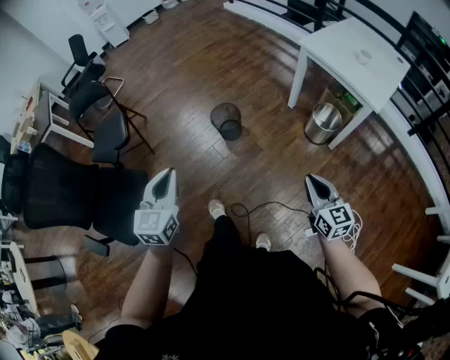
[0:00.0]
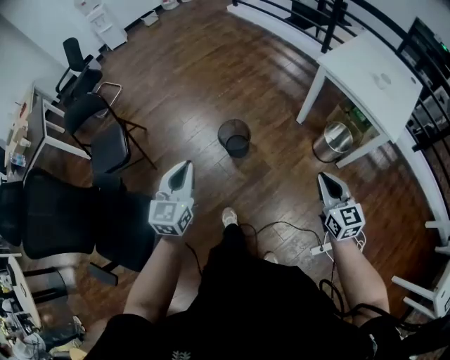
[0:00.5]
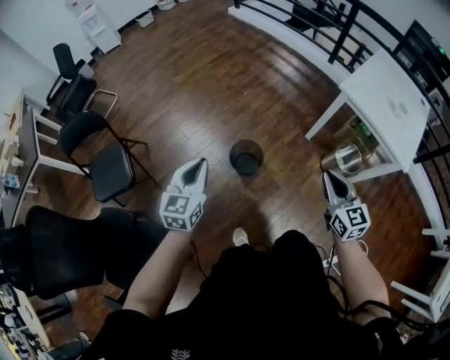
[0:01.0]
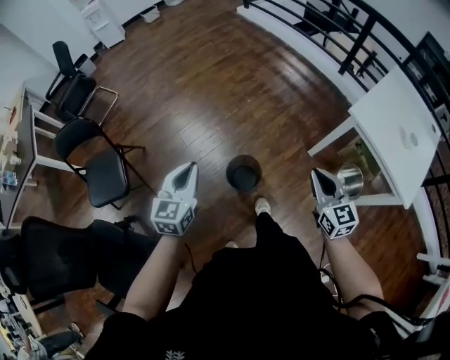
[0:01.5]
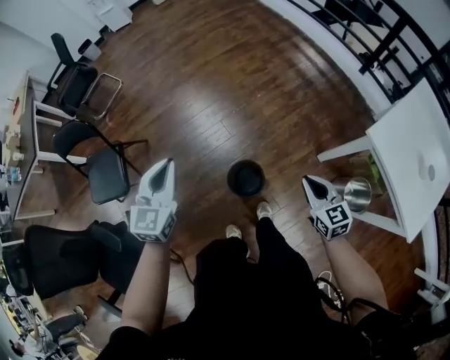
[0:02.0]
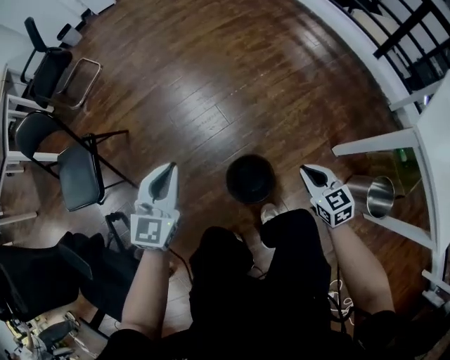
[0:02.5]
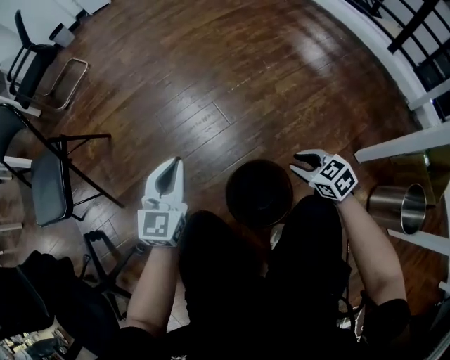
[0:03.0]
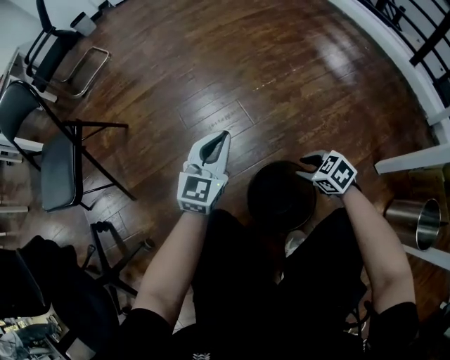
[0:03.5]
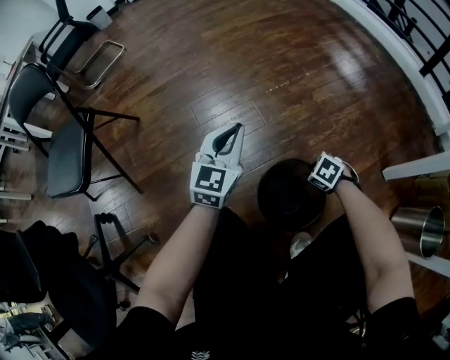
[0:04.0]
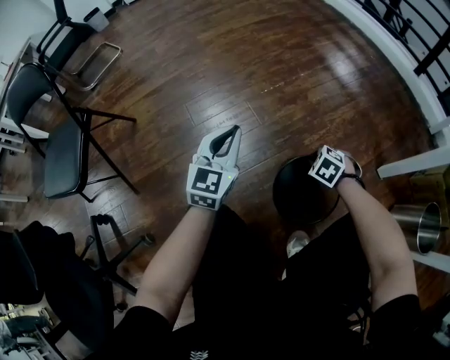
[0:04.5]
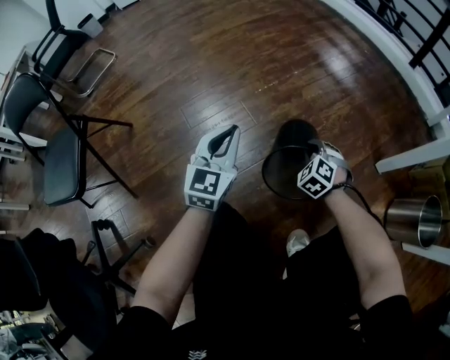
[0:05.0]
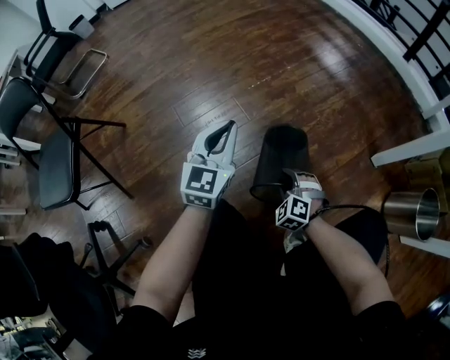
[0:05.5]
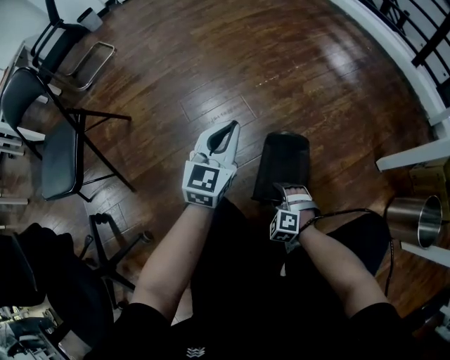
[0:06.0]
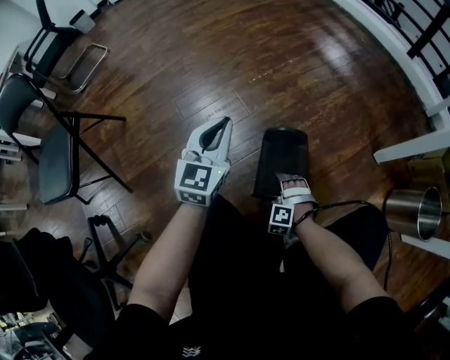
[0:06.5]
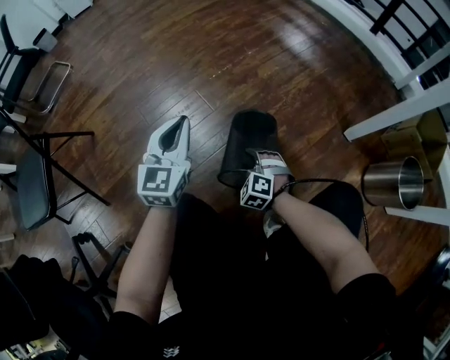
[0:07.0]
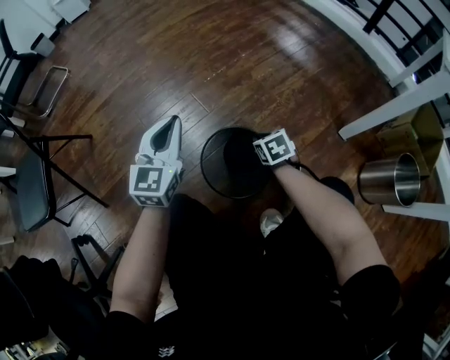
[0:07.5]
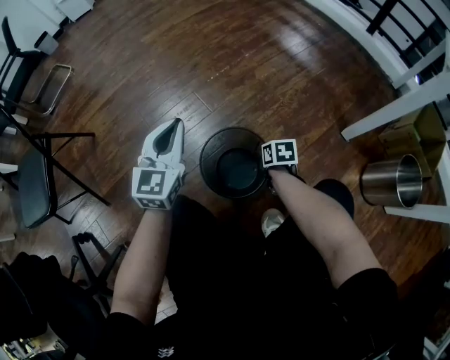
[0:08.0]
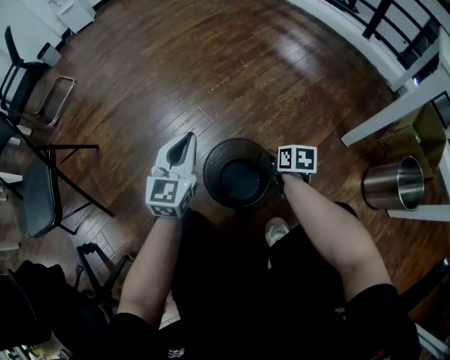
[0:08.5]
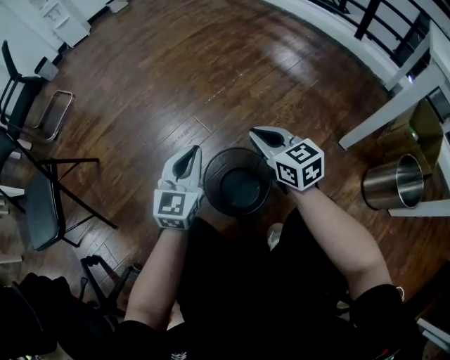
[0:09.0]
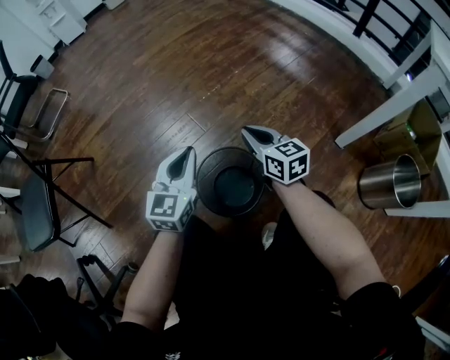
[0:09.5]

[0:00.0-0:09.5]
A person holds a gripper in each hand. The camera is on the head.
0:00.0 to 0:02.0: The two grippers travel together, forward, approximately 50 cm.
0:02.0 to 0:04.0: The grippers both shift downward by some 50 cm. The right gripper tips its fingers downward by roughly 50 degrees.
0:04.0 to 0:05.5: The right gripper shifts by some 10 cm, and swivels approximately 40 degrees.
0:05.5 to 0:07.5: The right gripper shifts about 10 cm forward and to the right, rolls clockwise, seen from behind, by some 60 degrees, and opens and closes again.
0:07.5 to 0:09.5: The right gripper swings up and down, some 25 cm each way, with 2 reversals, and angles its fingers upward, by some 40 degrees. The left gripper shifts by approximately 5 cm.

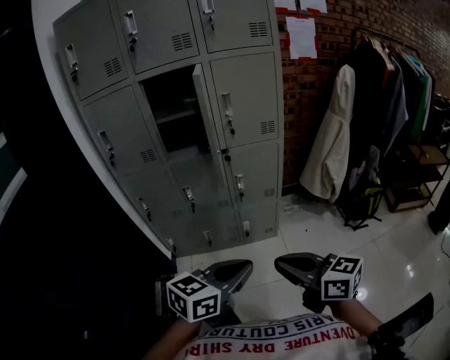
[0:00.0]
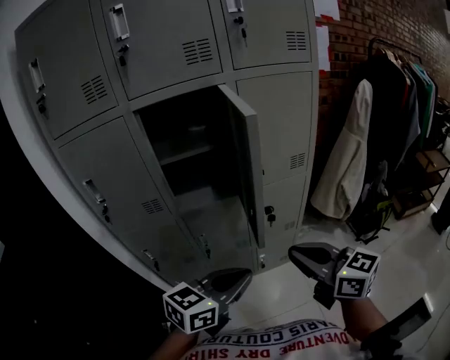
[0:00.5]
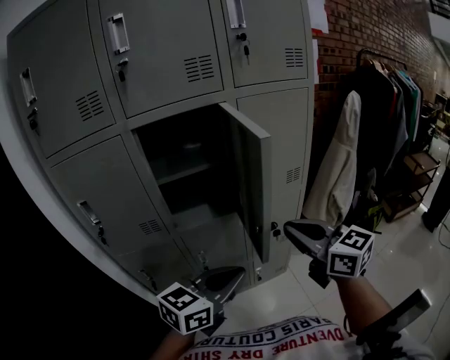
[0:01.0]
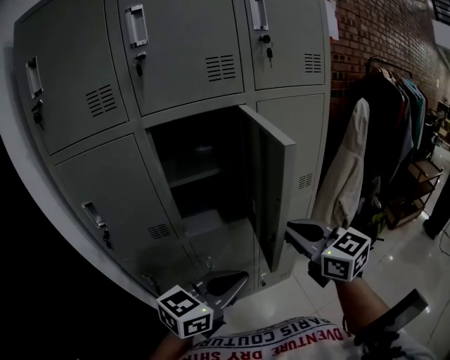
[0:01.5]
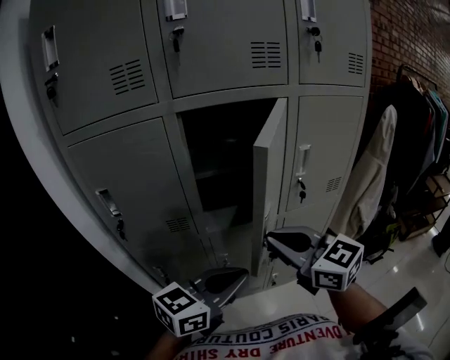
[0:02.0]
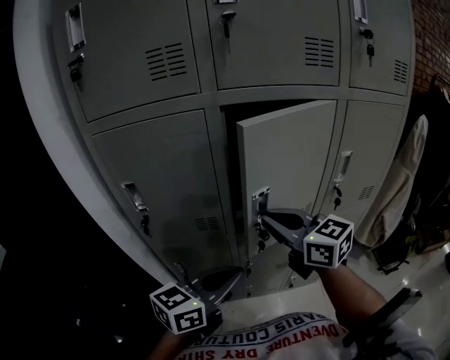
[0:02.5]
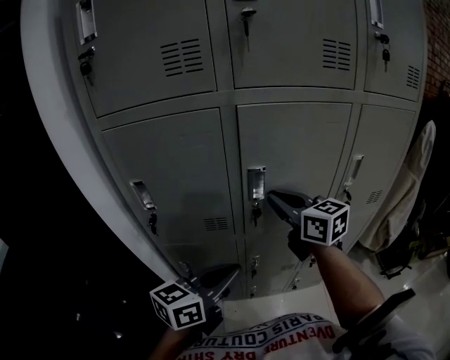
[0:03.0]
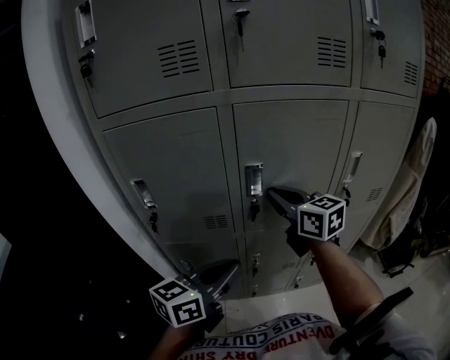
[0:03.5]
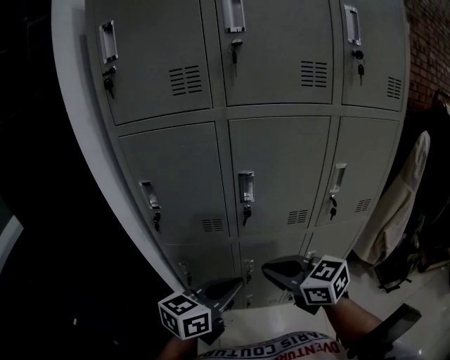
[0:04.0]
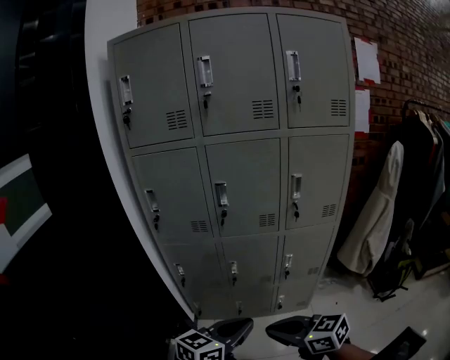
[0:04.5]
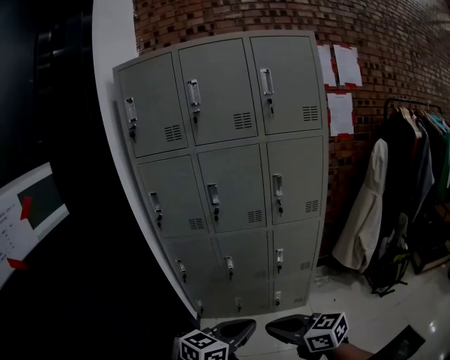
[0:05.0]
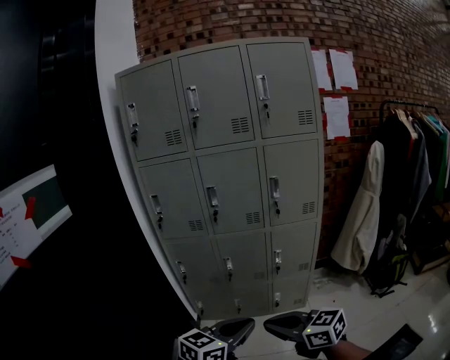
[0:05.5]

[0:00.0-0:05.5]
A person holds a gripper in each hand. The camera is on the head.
0:00.0 to 0:02.0: The two grippers travel together, forward and to the left, about 40 cm. The right gripper turns by roughly 20 degrees.
0:02.0 to 0:03.5: The left gripper shifts roughly 10 cm to the left and forward. The right gripper shifts roughly 20 cm forward and to the left.
0:03.5 to 0:05.5: The two grippers travel together, backward, approximately 50 cm. The right gripper changes its angle by approximately 30 degrees.

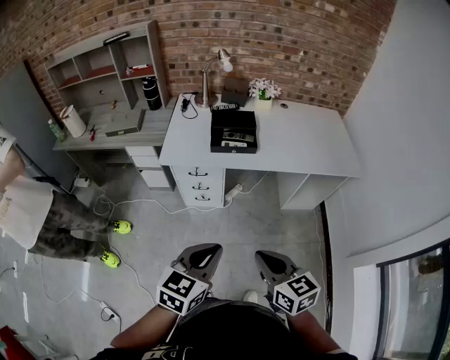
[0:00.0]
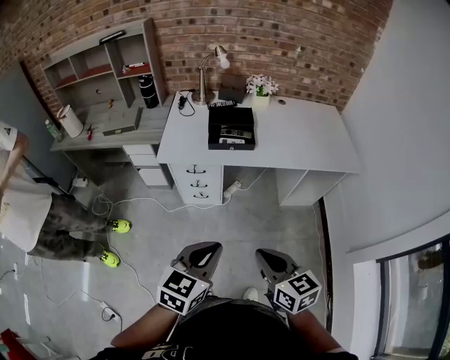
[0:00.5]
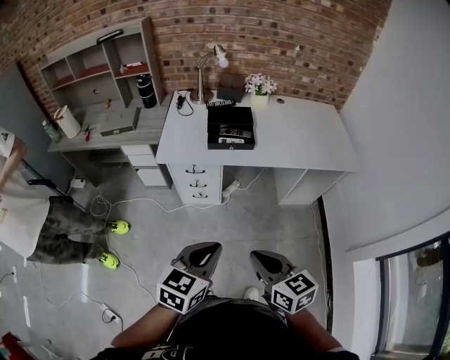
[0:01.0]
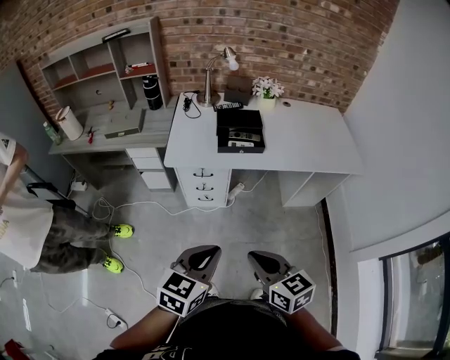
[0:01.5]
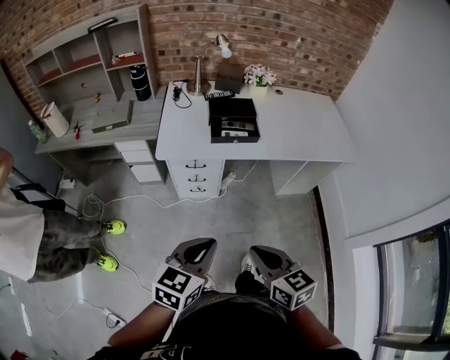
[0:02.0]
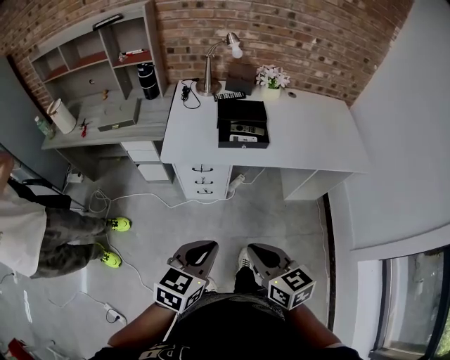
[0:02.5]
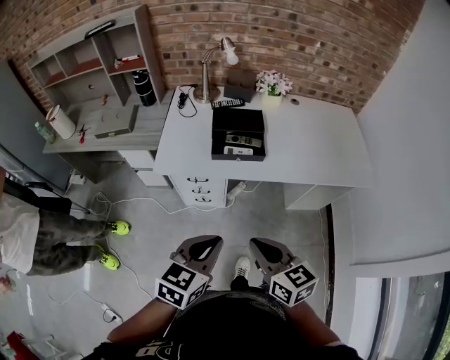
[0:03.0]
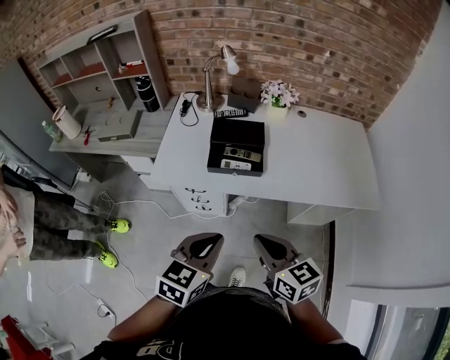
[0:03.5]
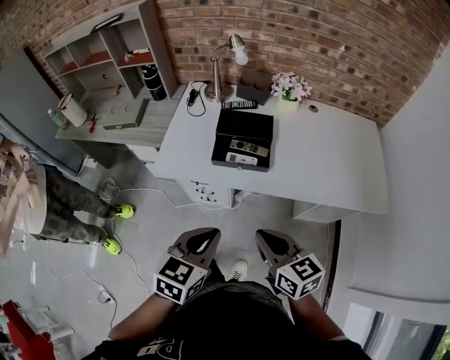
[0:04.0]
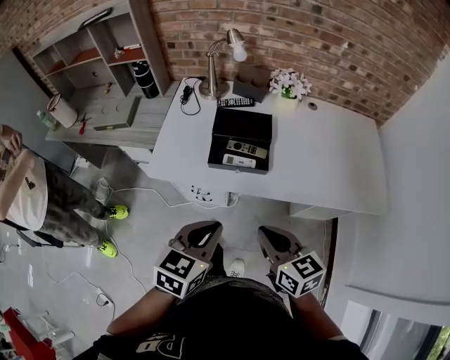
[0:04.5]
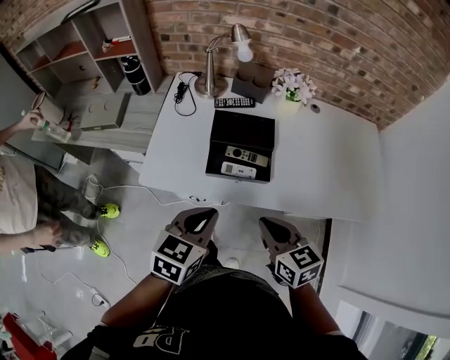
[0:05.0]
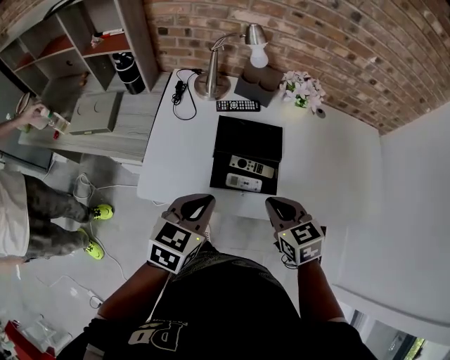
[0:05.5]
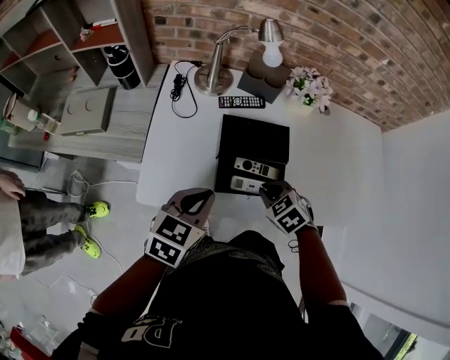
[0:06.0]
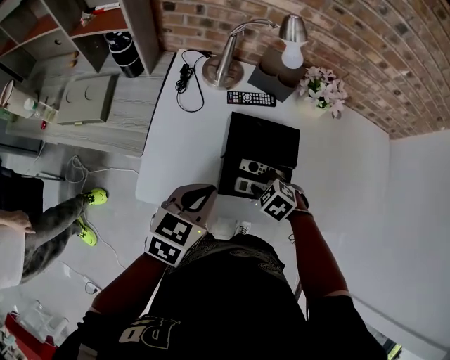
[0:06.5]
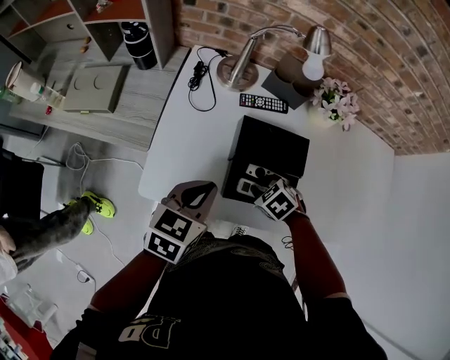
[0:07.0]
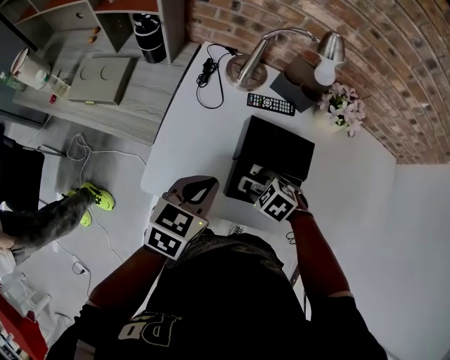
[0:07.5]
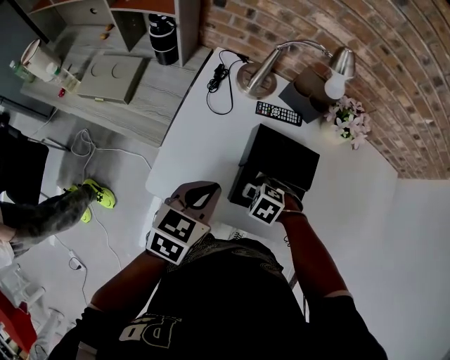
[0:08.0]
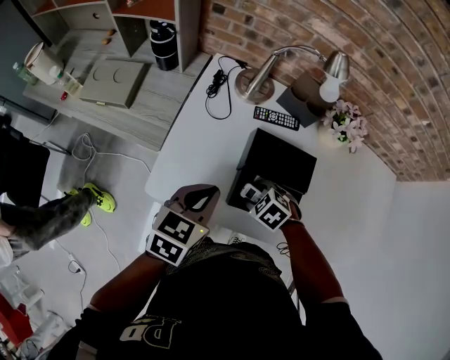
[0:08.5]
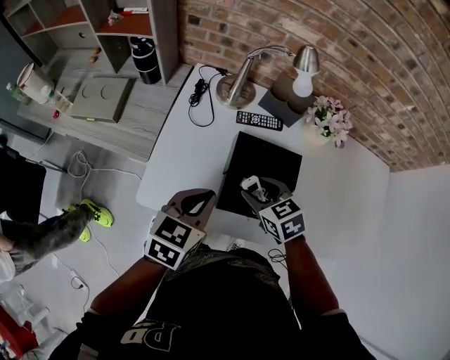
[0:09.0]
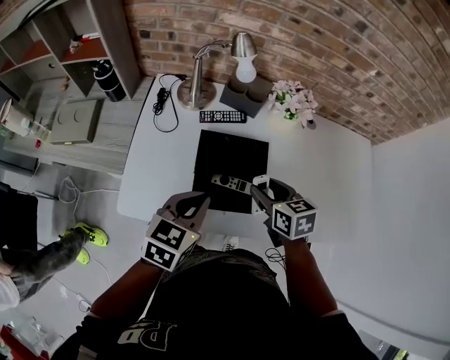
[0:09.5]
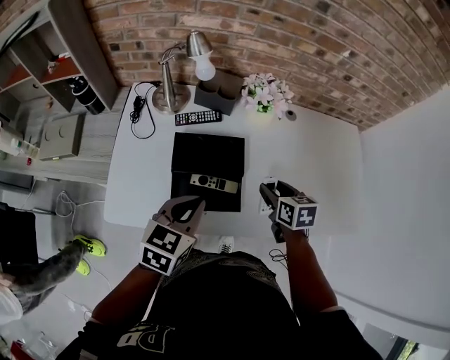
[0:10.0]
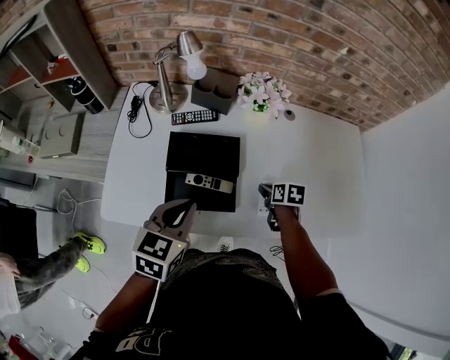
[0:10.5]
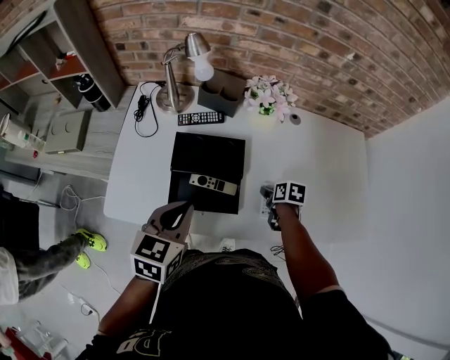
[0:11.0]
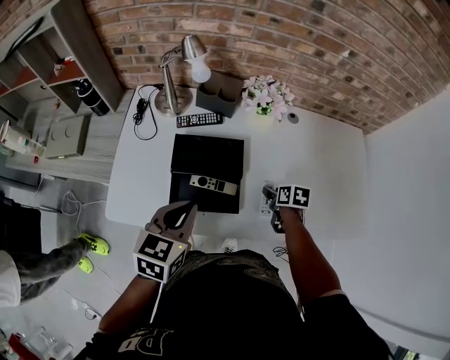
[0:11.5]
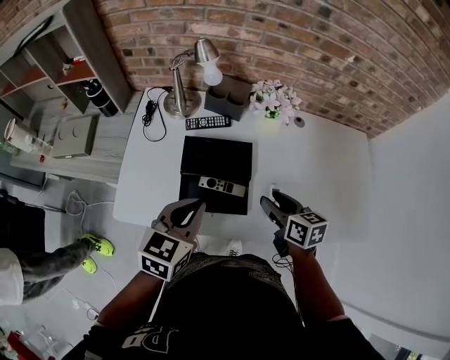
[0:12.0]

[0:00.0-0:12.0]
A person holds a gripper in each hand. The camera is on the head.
0:00.0 to 0:02.0: Both grippers travel together to the left, roughly 10 cm.
0:02.0 to 0:04.0: Both grippers travel together forward and to the right, roughly 25 cm.
0:04.0 to 0:06.0: The right gripper moves forward and downward, about 35 cm, and angles its fingers downward, by some 40 degrees; the left gripper shifts approximately 25 cm forward.
0:06.0 to 0:08.0: The right gripper travels downward by approximately 10 cm, changes its angle by about 40 degrees, and opens up. Meanwhile the left gripper ends up about 5 cm from where it was.
0:08.0 to 0:10.0: The right gripper shifts by approximately 30 cm, and rolls clockwise, seen from behind, by about 70 degrees. The left gripper moves roughly 15 cm.
0:10.0 to 0:12.0: The right gripper reaches some 15 cm downward, then returns.
